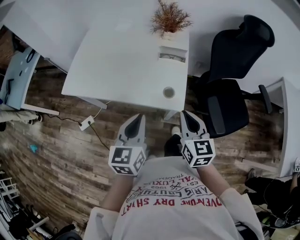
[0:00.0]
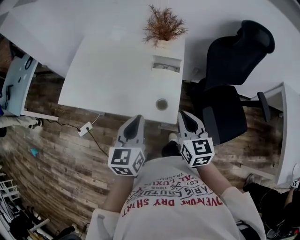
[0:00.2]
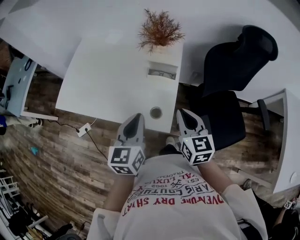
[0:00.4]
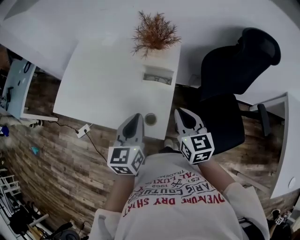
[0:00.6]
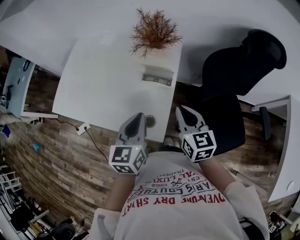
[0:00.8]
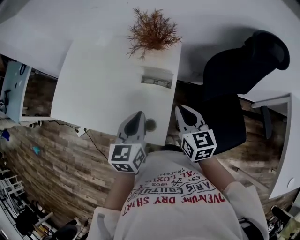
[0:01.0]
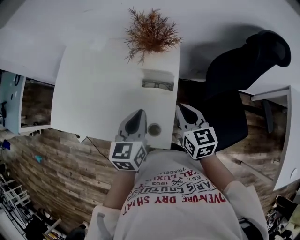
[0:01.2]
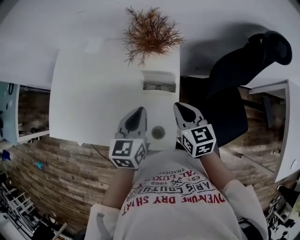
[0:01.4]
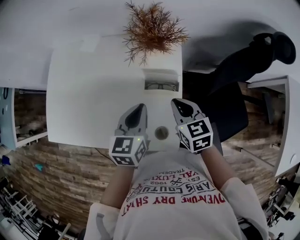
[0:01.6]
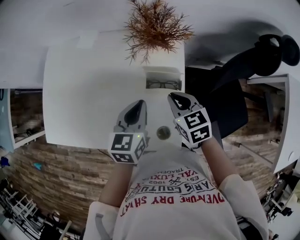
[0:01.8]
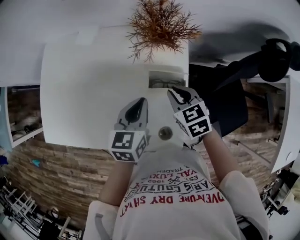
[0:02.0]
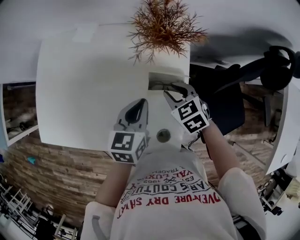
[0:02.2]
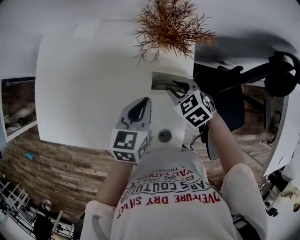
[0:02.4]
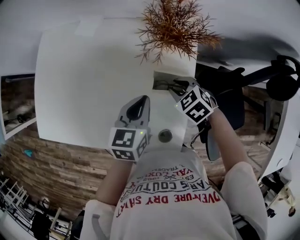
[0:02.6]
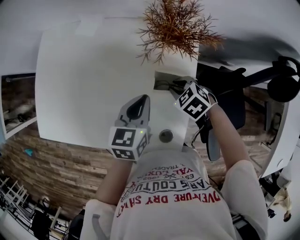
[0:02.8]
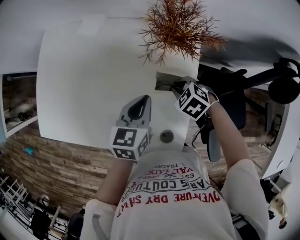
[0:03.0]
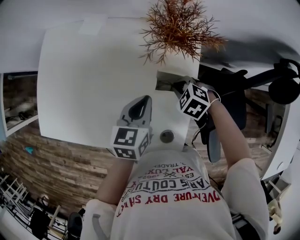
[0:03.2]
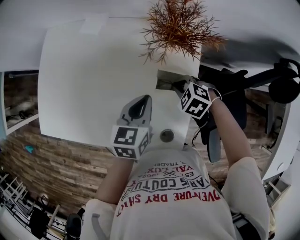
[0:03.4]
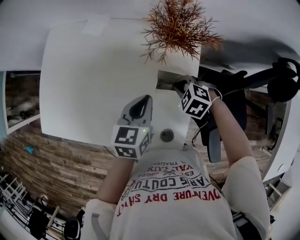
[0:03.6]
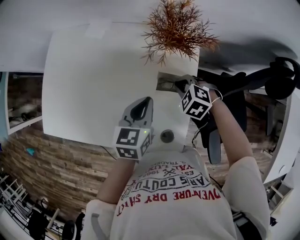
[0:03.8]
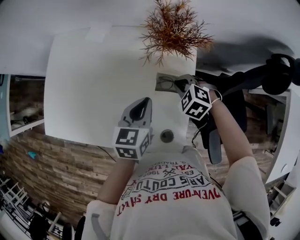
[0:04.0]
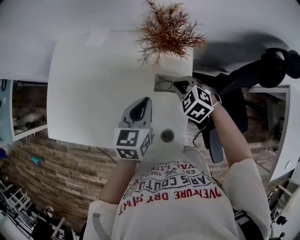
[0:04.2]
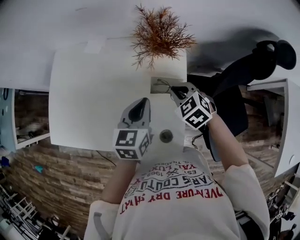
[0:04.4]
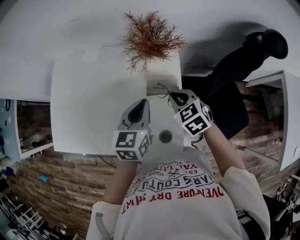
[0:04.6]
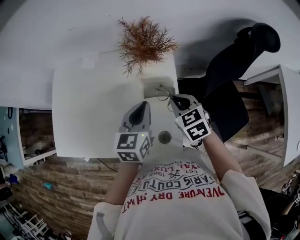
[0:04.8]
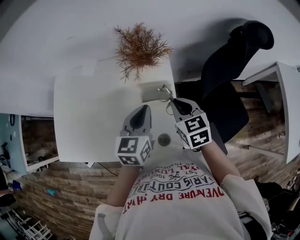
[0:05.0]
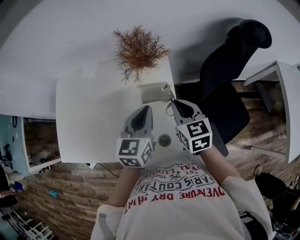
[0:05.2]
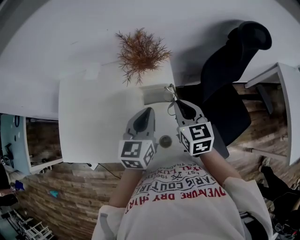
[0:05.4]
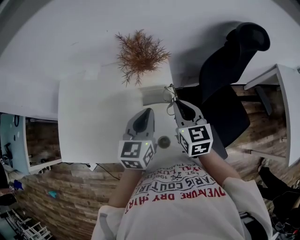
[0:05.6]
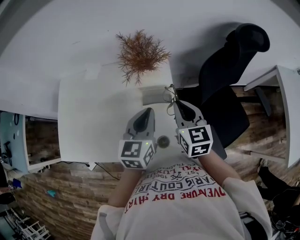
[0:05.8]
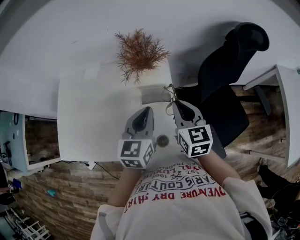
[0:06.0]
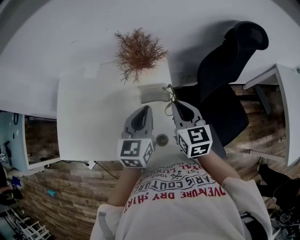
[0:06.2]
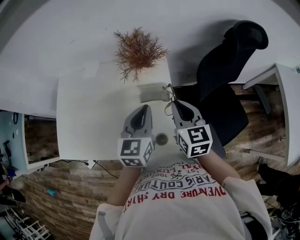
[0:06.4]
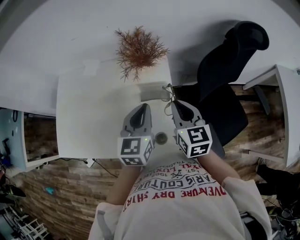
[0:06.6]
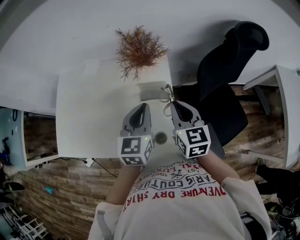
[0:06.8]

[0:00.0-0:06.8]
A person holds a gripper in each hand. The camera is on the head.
0:00.0 to 0:01.4: Both grippers move forward, about 25 cm.
0:01.4 to 0:02.8: The left gripper travels forward and downward by approximately 10 cm, while the right gripper shifts about 15 cm downward and forward, and angles its fingers downward, by roughly 40 degrees.
0:04.0 to 0:05.4: The left gripper goes roughly 15 cm upward and to the right. Meanwhile the right gripper moves upward, backward and to the right, some 20 cm, and tilts its fingers some 40 degrees upward.
0:05.4 to 0:06.8: The grippers stay close to where they were, moving slightly.

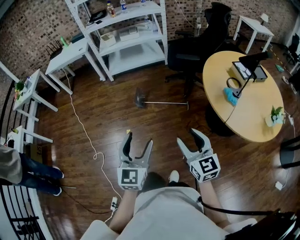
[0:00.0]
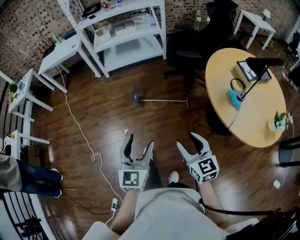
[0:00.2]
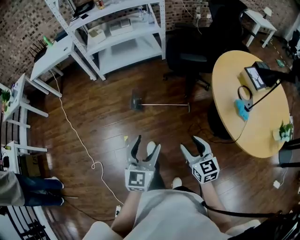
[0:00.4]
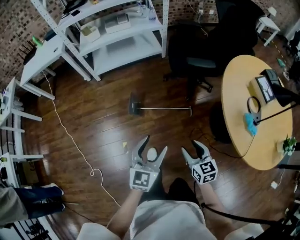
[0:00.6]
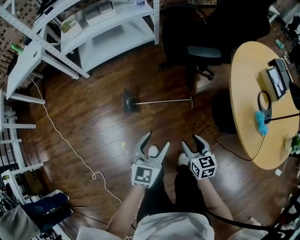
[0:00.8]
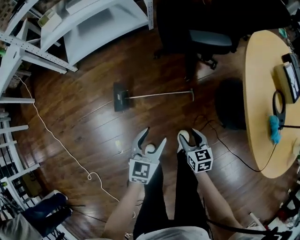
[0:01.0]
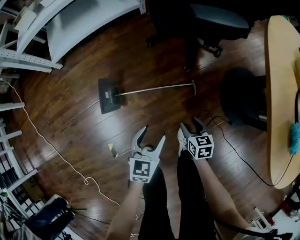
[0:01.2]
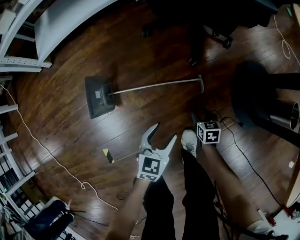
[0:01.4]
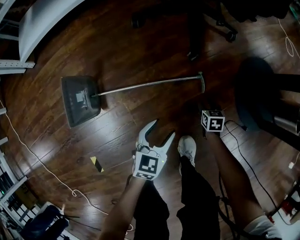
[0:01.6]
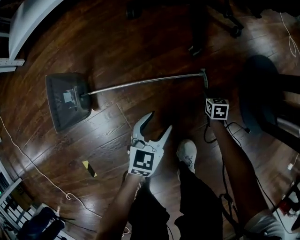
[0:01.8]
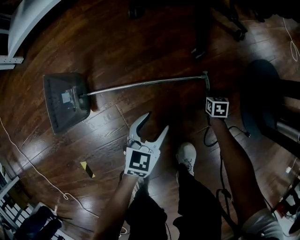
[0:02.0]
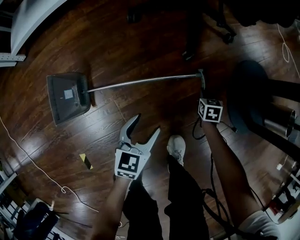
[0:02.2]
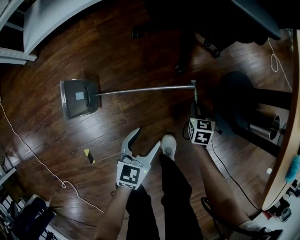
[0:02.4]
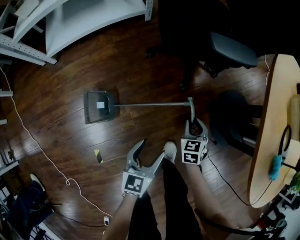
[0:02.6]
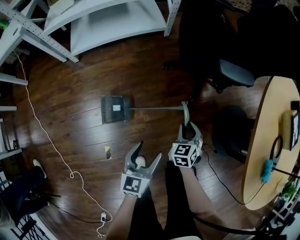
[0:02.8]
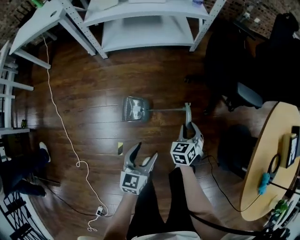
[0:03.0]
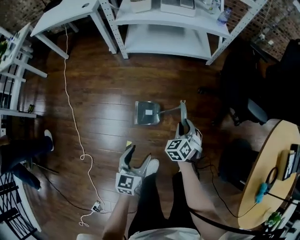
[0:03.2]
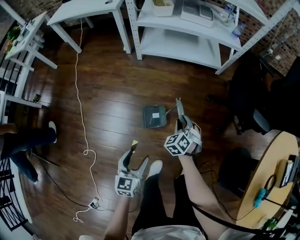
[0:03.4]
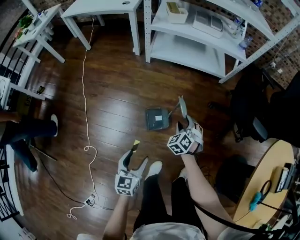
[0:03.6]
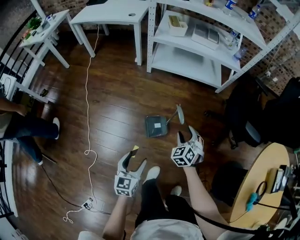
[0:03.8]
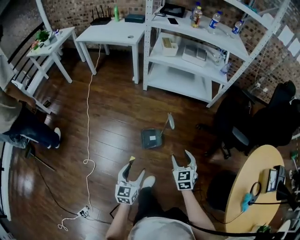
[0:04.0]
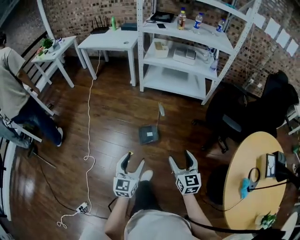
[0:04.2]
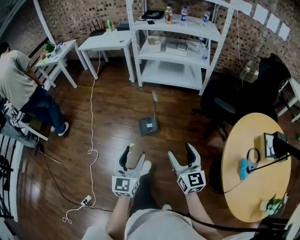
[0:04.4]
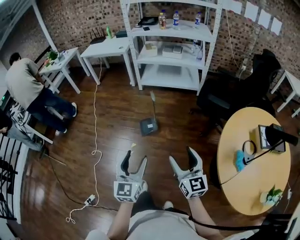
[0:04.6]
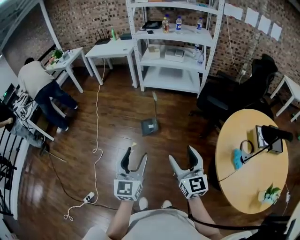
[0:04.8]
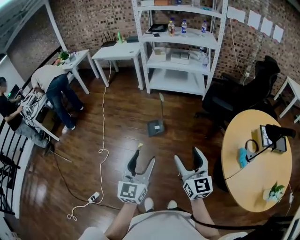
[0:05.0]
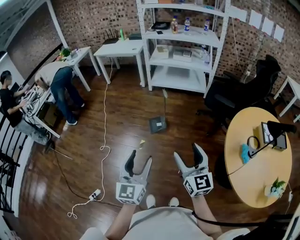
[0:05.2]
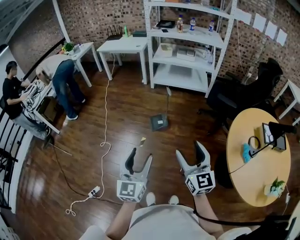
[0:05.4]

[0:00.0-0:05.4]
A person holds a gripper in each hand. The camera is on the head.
0:00.0 to 0:01.4: The pair of grippers is taken about 50 cm. Both grippers move downward, about 80 cm. The left gripper changes its angle by approximately 40 degrees, while the right gripper points its fingers some 50 degrees further downward.
0:01.4 to 0:02.8: Both grippers travel together upward and to the left, roughly 35 cm. The left gripper changes its angle by roughly 20 degrees. Meanwhile the right gripper turns by about 30 degrees, and closes its fingers.
0:02.8 to 0:04.0: The left gripper moves some 40 cm, and rotates roughly 30 degrees. The right gripper shifts by approximately 40 cm, turns by about 40 degrees, and opens up.
0:04.0 to 0:05.4: The two grippers go approximately 50 cm backward and upward. The right gripper angles its fingers upward, by roughly 30 degrees. Meanwhile the left gripper turns by some 20 degrees.

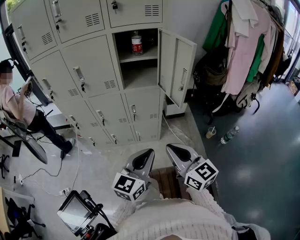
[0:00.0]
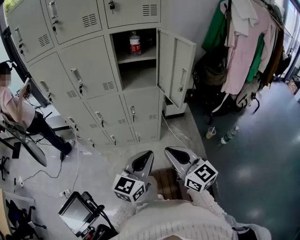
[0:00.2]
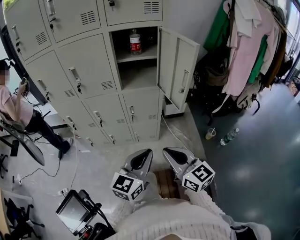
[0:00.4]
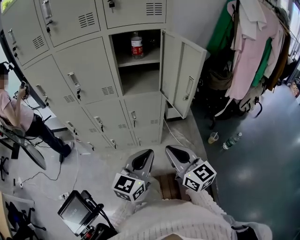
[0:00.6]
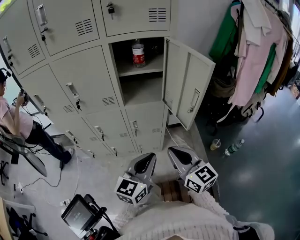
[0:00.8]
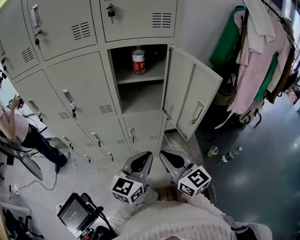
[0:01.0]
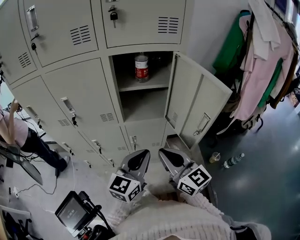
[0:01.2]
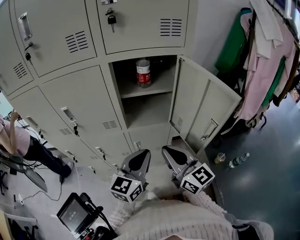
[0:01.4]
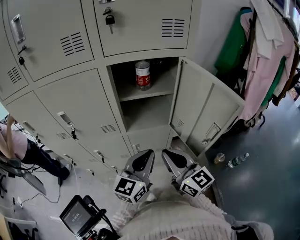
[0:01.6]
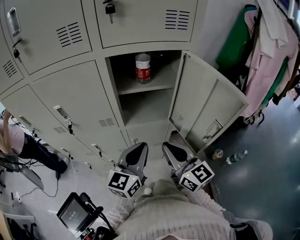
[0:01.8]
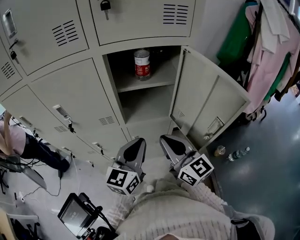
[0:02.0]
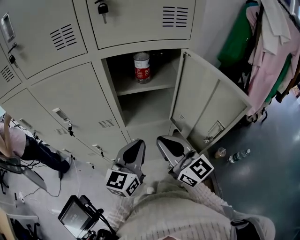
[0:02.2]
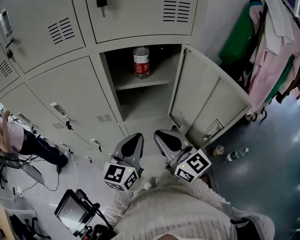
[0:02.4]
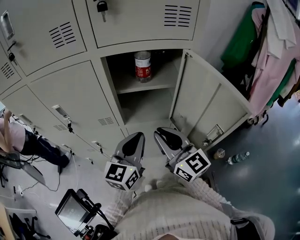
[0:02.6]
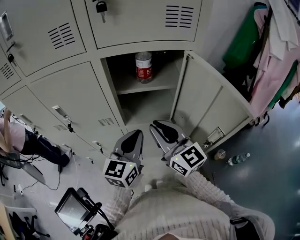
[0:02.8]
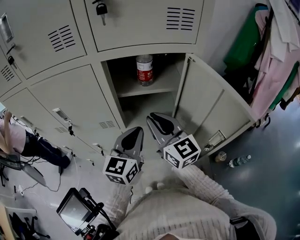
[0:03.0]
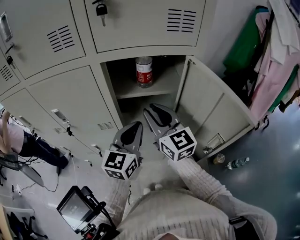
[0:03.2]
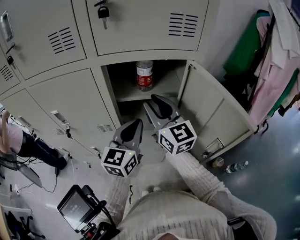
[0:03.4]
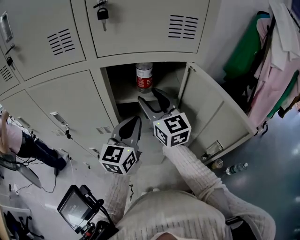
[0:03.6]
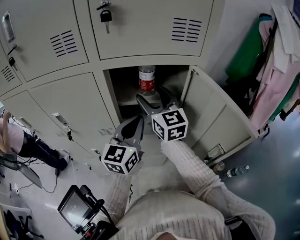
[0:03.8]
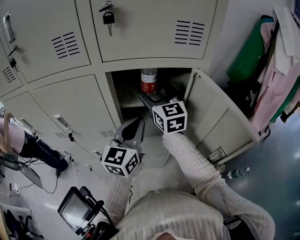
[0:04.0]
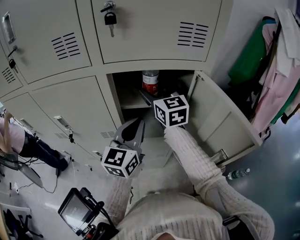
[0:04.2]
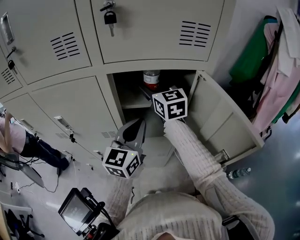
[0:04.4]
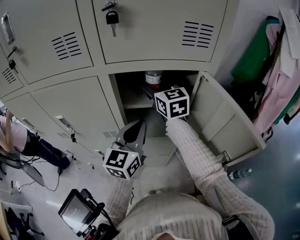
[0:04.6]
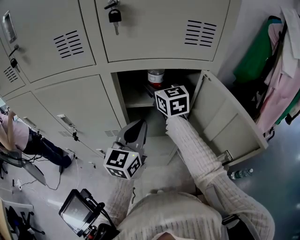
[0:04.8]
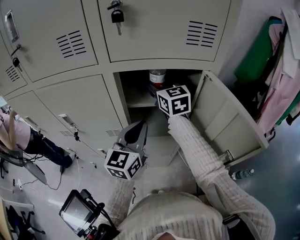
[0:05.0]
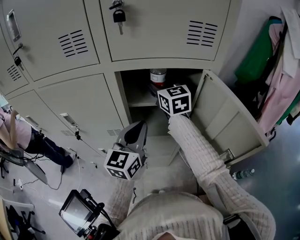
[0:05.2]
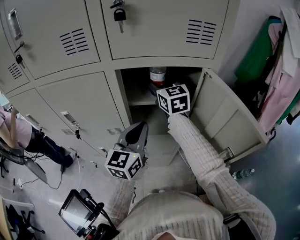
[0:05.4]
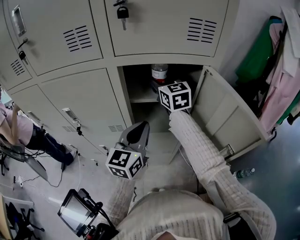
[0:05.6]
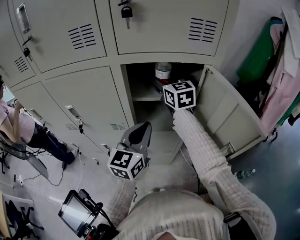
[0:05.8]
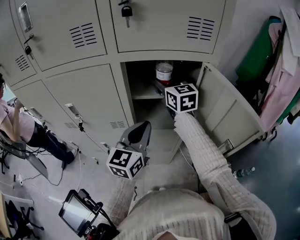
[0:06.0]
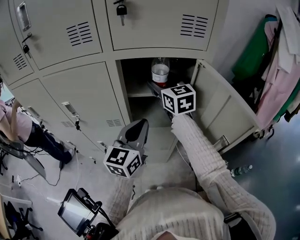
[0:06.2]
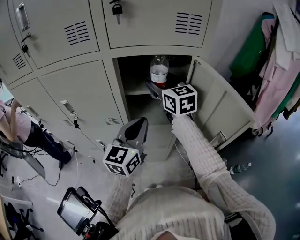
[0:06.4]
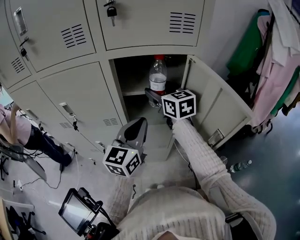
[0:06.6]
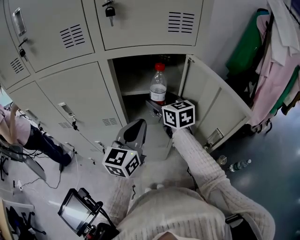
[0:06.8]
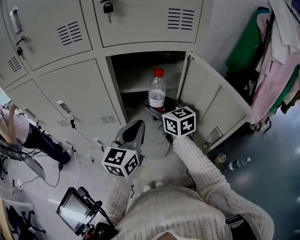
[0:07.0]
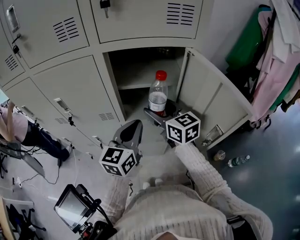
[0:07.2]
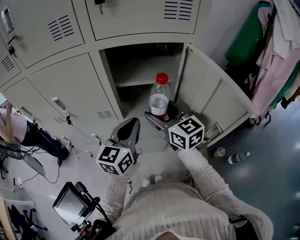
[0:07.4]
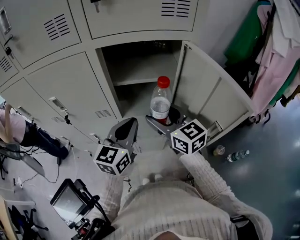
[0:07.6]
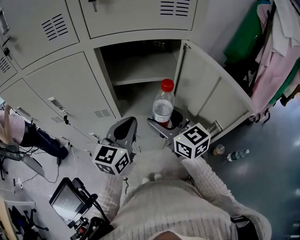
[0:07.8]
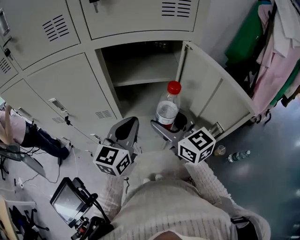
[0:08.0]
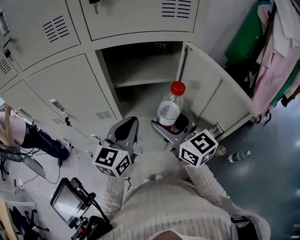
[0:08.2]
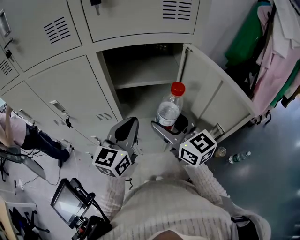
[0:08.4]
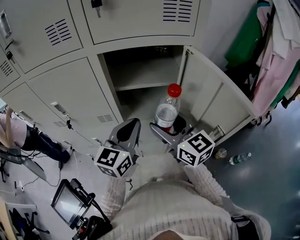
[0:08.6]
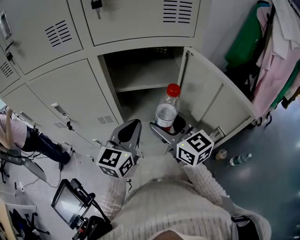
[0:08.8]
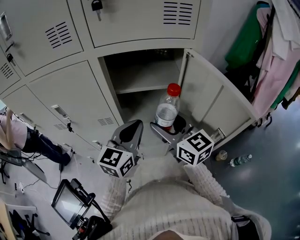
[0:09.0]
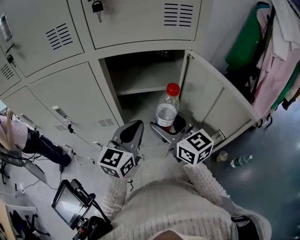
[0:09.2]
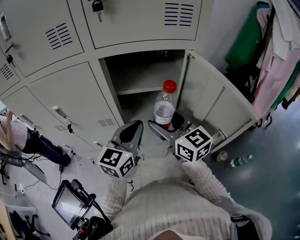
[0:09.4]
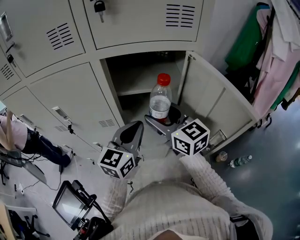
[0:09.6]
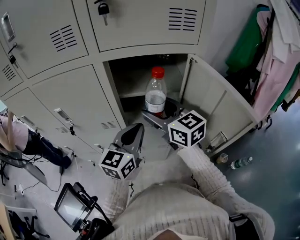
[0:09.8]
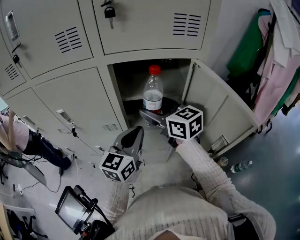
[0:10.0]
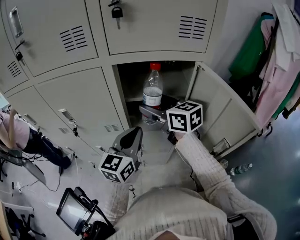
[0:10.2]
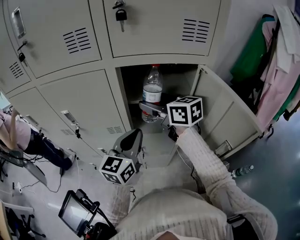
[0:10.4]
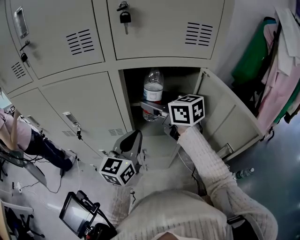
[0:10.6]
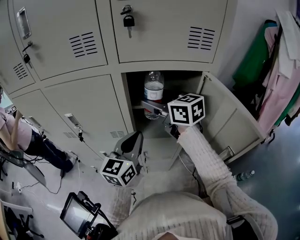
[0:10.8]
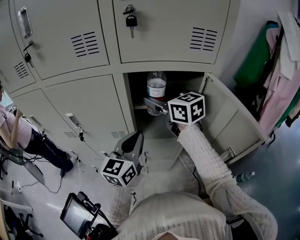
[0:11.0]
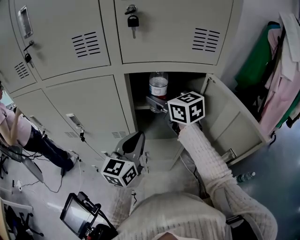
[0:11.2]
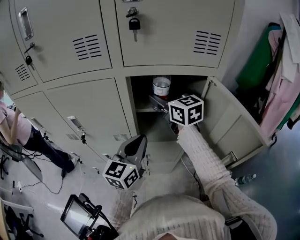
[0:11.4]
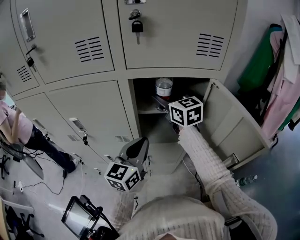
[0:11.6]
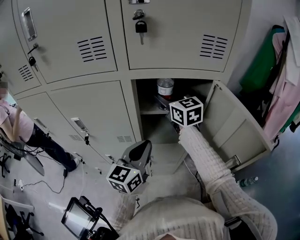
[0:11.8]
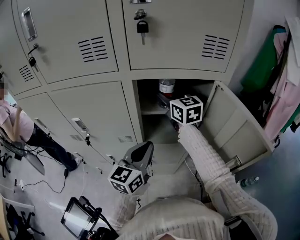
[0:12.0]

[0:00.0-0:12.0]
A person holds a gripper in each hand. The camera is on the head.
0:00.0 to 0:01.6: Both grippers travel together forward, approximately 30 cm.
0:01.6 to 0:03.0: Both grippers travel together forward, roughly 10 cm.
0:03.0 to 0:04.4: The left gripper moves forward, some 5 cm; the right gripper shifts approximately 20 cm forward, and opens its fingers.
0:04.4 to 0:06.0: The left gripper shifts by about 5 cm.
0:06.0 to 0:07.6: The right gripper travels backward and downward by some 20 cm.
0:07.6 to 0:09.0: There are only small adjustments of the grippers.
0:09.0 to 0:10.4: The right gripper travels forward and to the left by roughly 15 cm.
0:10.4 to 0:12.0: The right gripper heads forward, covering roughly 10 cm, and swivels approximately 30 degrees.
